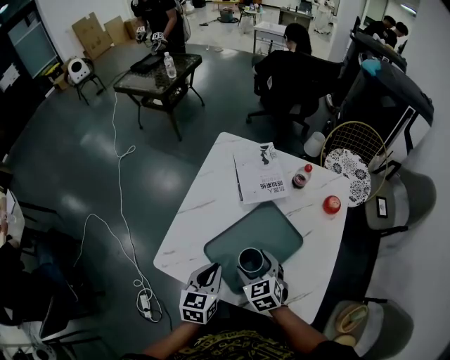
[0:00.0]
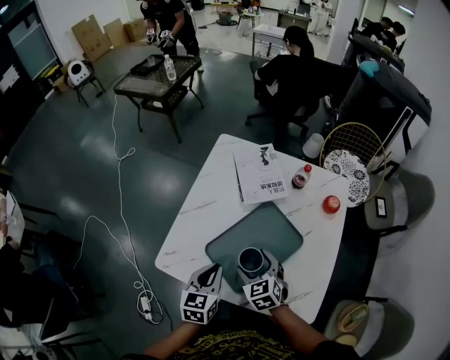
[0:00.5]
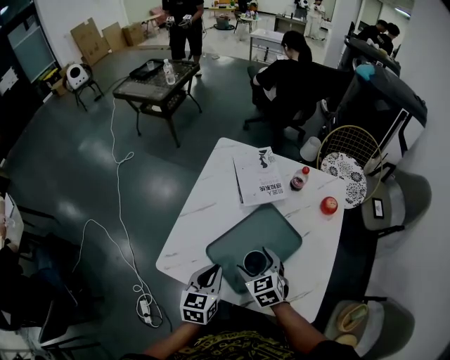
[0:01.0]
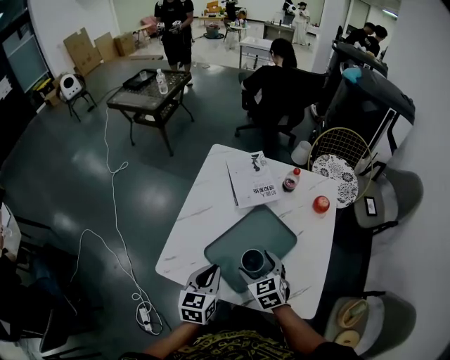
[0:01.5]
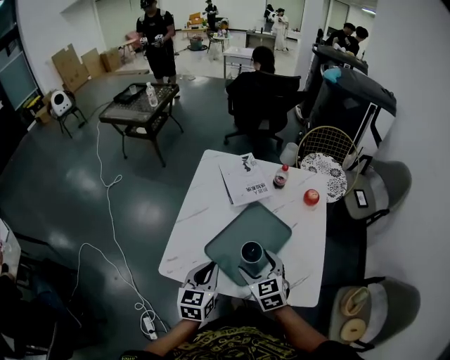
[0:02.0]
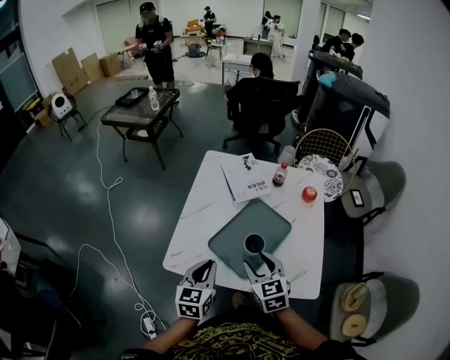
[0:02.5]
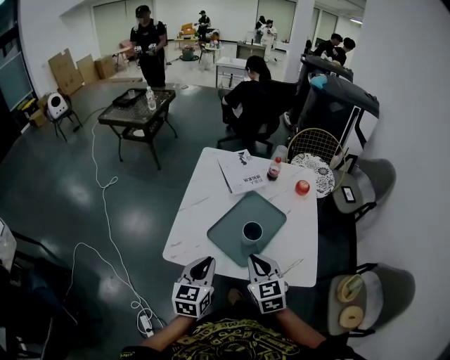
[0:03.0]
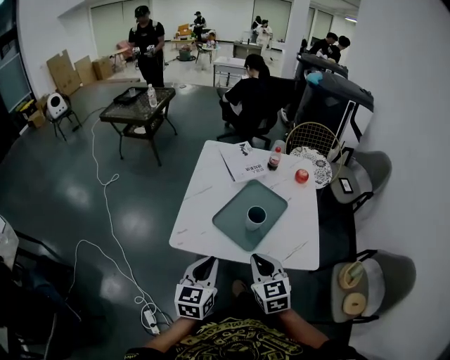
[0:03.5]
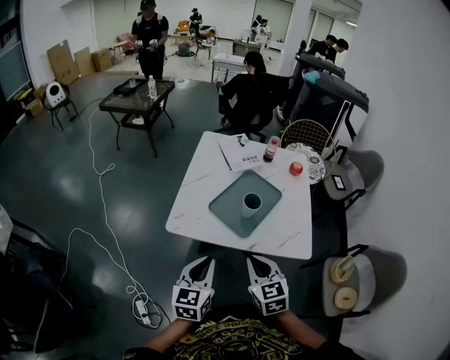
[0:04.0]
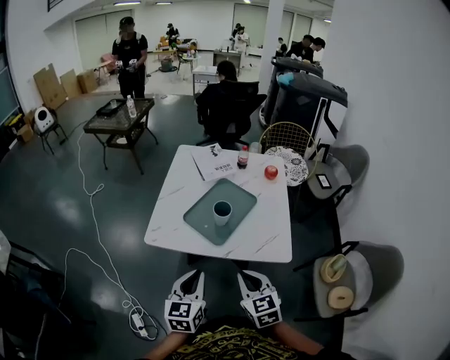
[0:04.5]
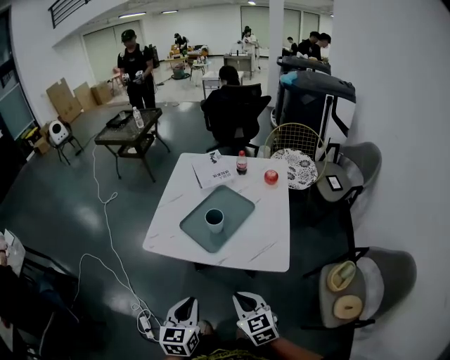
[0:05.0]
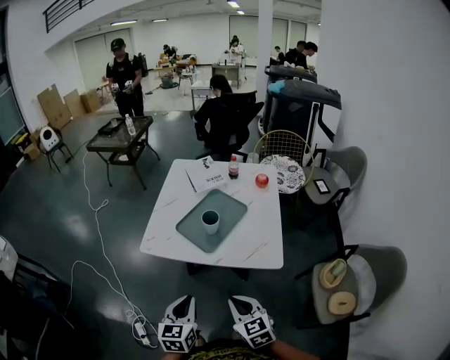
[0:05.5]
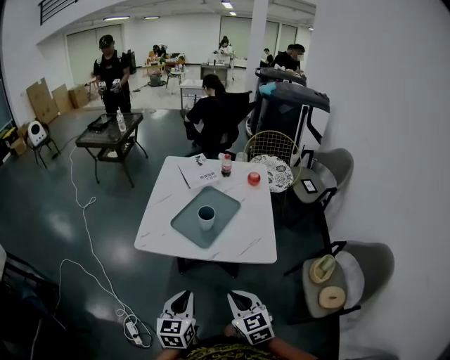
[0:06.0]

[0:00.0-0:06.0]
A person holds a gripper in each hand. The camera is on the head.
0:00.0 to 0:02.0: Both grippers travel together upward, roughly 5 cm.
0:02.0 to 0:04.0: The grippers both shift backward by some 20 cm. The right gripper closes.
0:04.0 to 0:06.0: Both grippers travel together backward and to the right, about 15 cm.

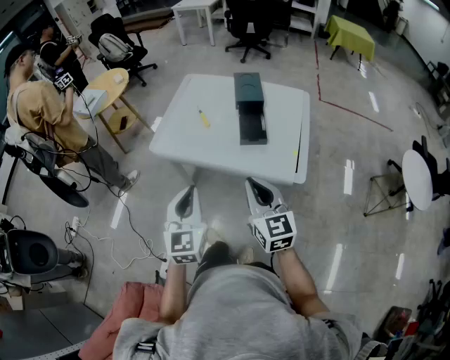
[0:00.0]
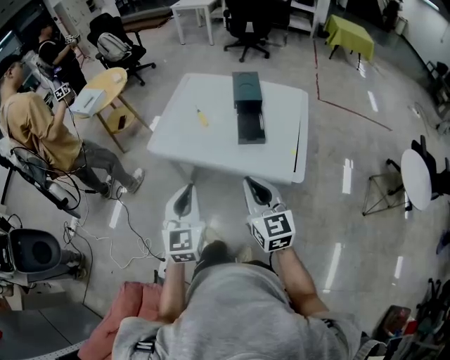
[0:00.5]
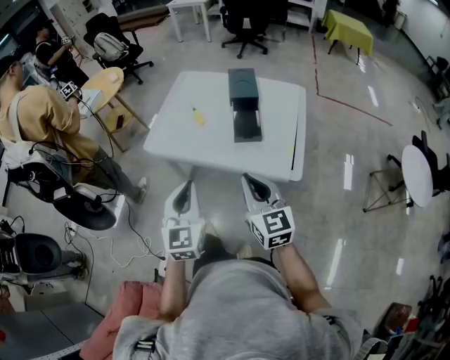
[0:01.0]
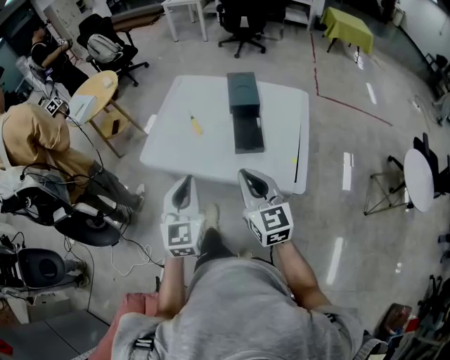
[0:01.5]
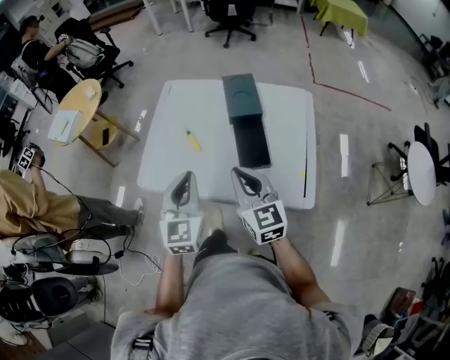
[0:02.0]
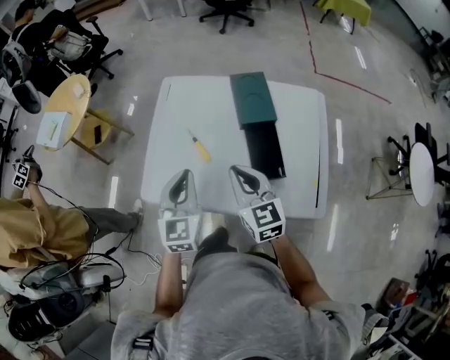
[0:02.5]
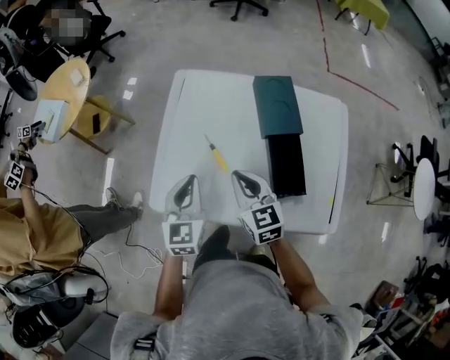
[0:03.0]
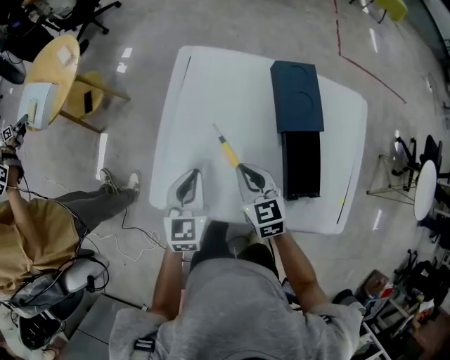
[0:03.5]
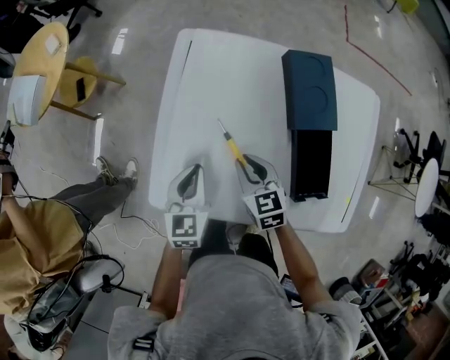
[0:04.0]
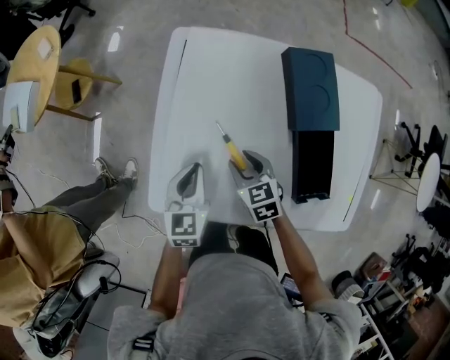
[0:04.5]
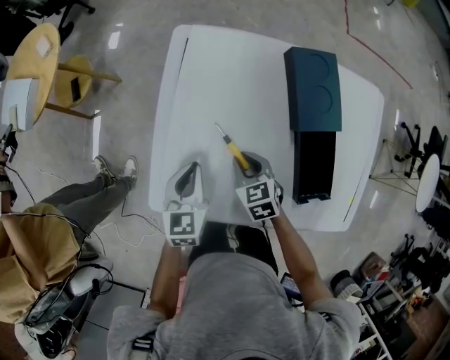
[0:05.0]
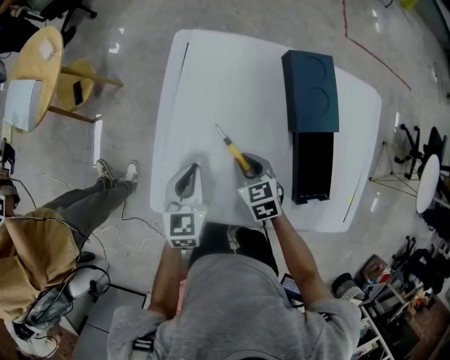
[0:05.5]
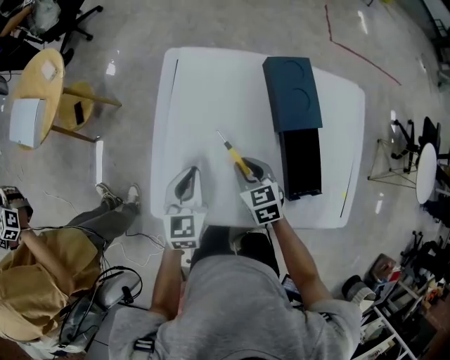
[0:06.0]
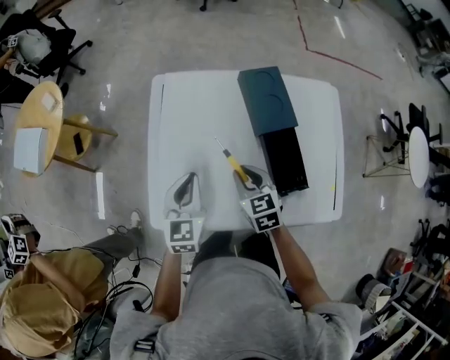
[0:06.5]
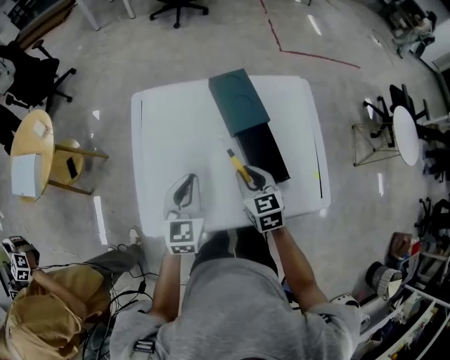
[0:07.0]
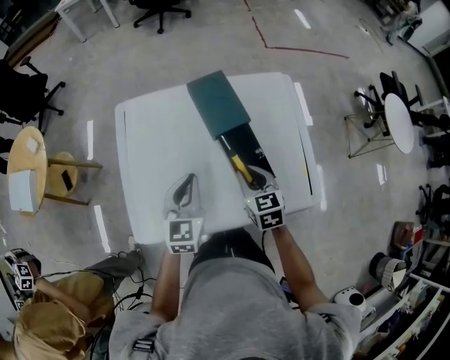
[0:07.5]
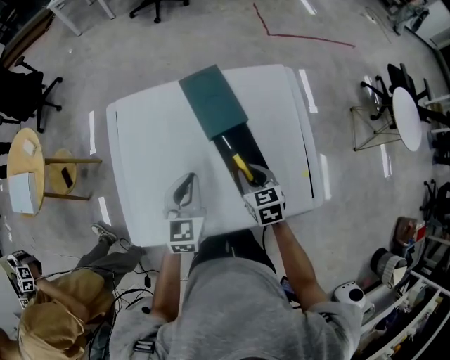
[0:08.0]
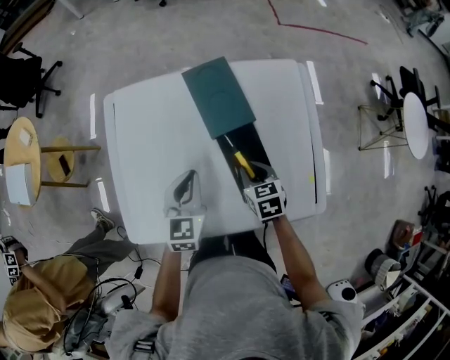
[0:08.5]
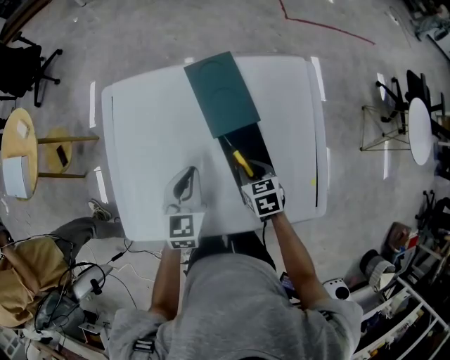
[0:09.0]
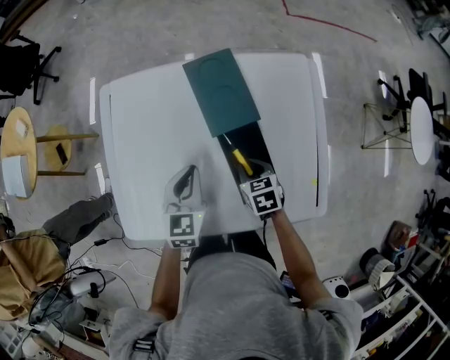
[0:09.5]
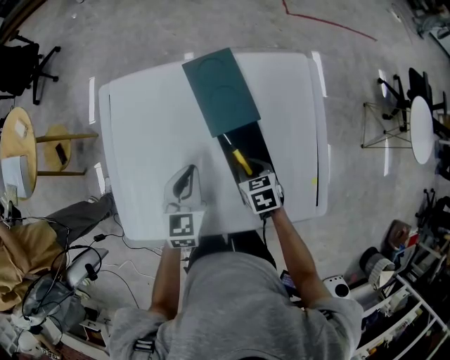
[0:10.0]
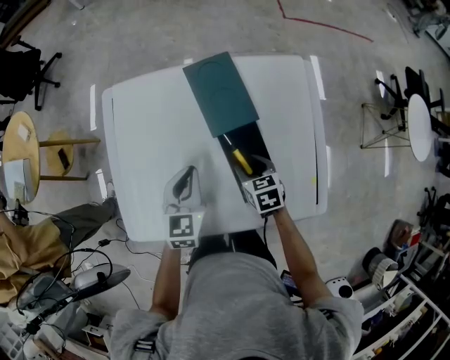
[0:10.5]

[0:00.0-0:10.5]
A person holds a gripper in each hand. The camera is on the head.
0:00.0 to 0:02.0: Both grippers move forward, approximately 25 cm.
0:02.0 to 0:04.0: The left gripper is displaced forward, downward and to the left by about 35 cm, and turns by about 30 degrees, while the right gripper heads downward, forward and to the left, covering approximately 35 cm, and swivels roughly 30 degrees.
0:04.0 to 0:06.5: Both grippers move upward, about 5 cm. The right gripper opens, then closes again.
0:06.5 to 0:08.5: Both grippers travel together to the right, roughly 15 cm.
0:08.5 to 0:10.5: The right gripper opens its fingers.

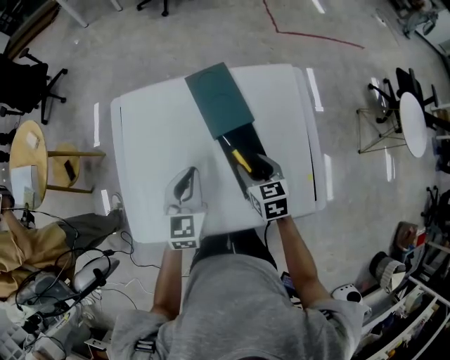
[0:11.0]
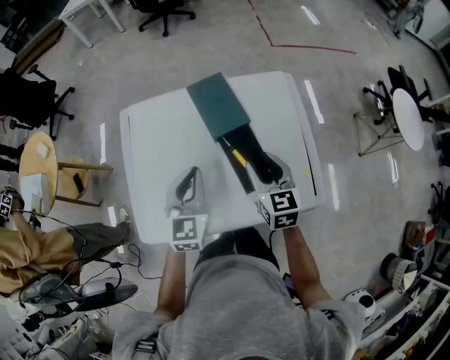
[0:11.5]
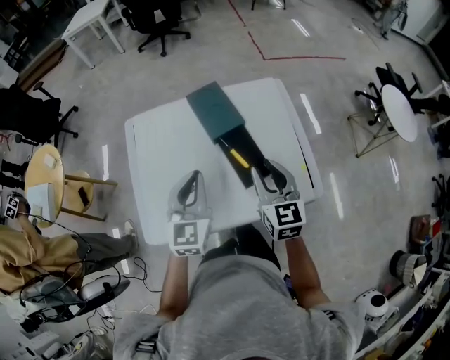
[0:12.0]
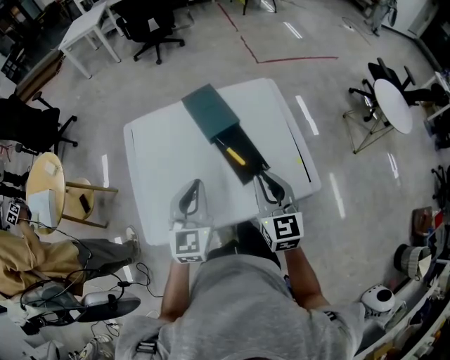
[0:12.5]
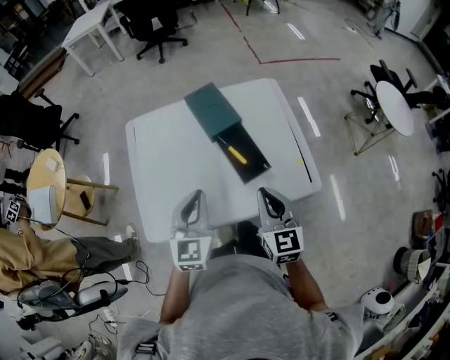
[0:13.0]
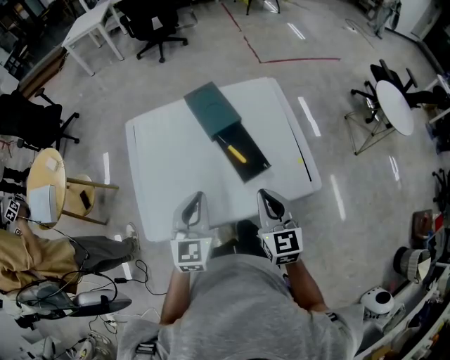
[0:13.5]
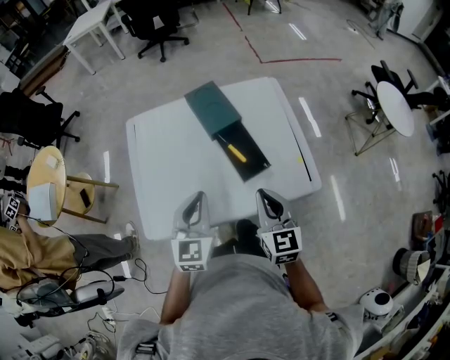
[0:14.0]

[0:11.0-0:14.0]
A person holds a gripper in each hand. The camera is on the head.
0:11.0 to 0:12.5: The right gripper travels upward and backward by roughly 20 cm, changes its angle by about 30 degrees, and closes up. Meanwhile the left gripper is displaced backward and upward by about 15 cm.
0:12.5 to 0:14.0: The right gripper shifts by some 5 cm.

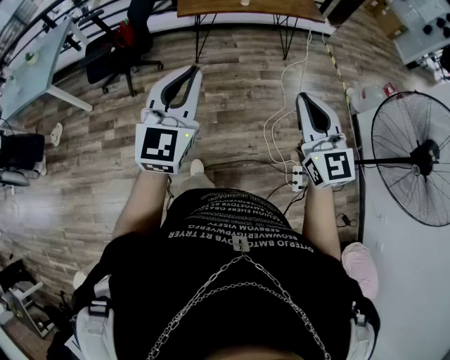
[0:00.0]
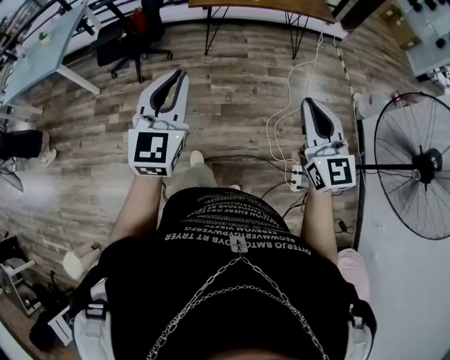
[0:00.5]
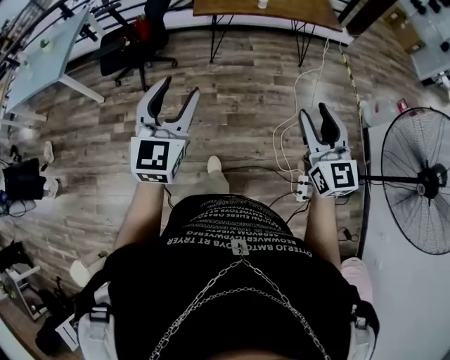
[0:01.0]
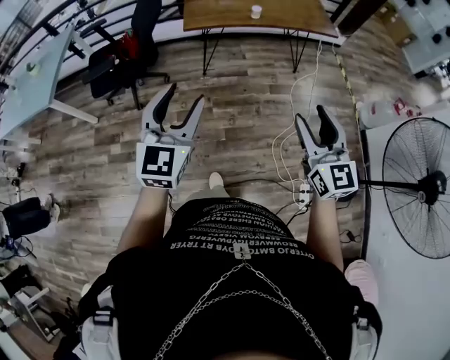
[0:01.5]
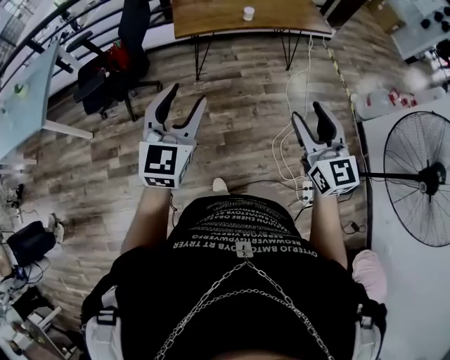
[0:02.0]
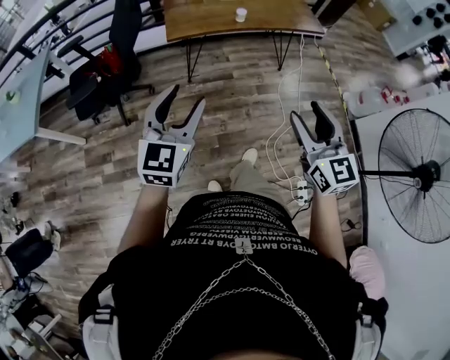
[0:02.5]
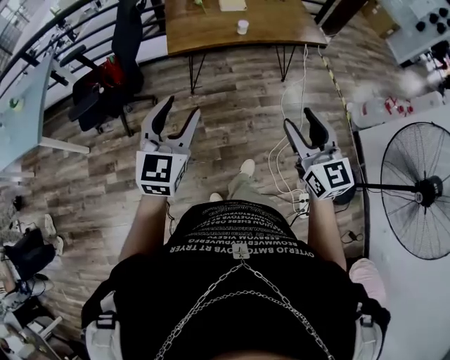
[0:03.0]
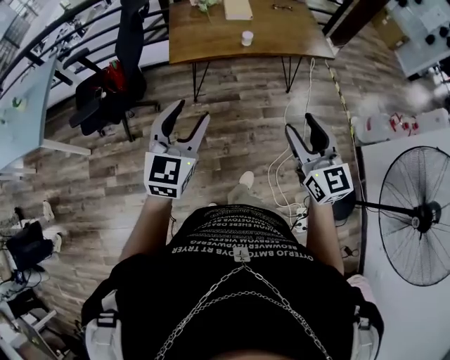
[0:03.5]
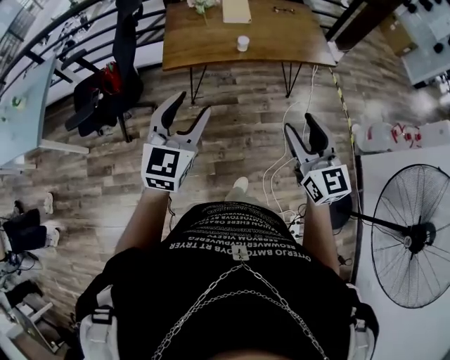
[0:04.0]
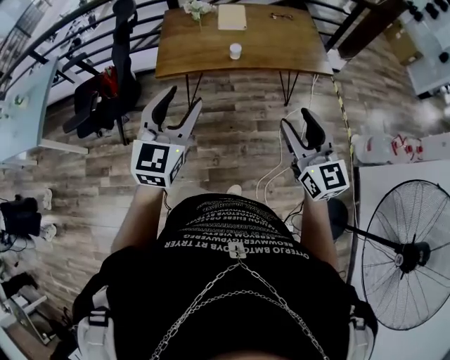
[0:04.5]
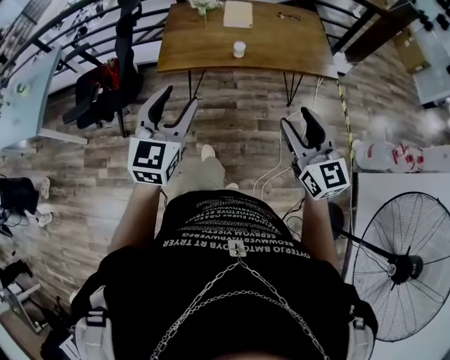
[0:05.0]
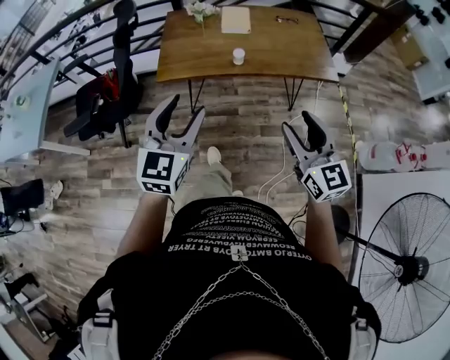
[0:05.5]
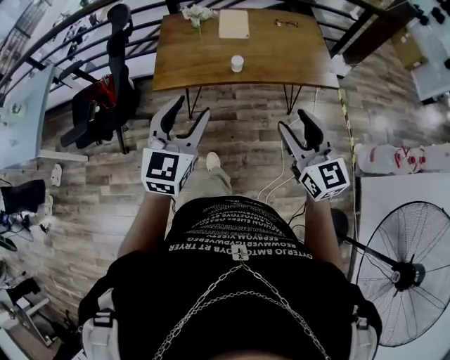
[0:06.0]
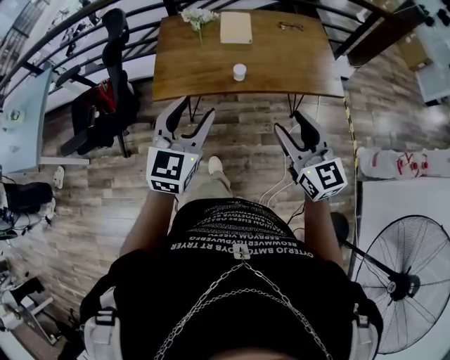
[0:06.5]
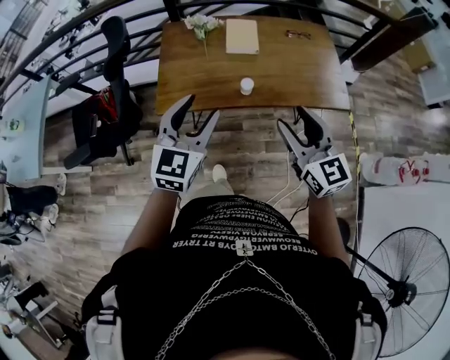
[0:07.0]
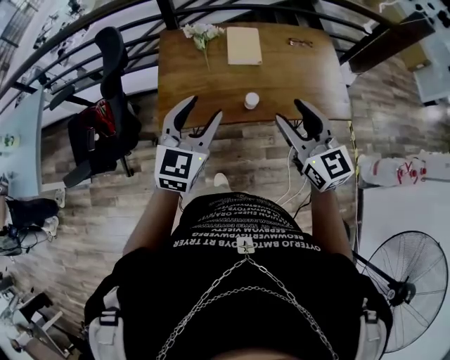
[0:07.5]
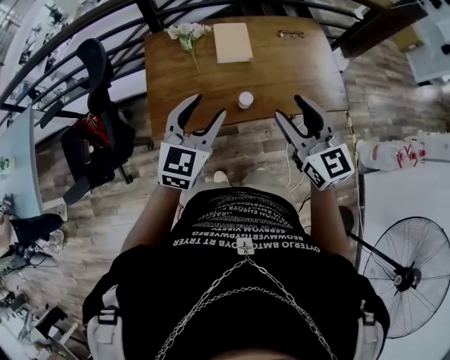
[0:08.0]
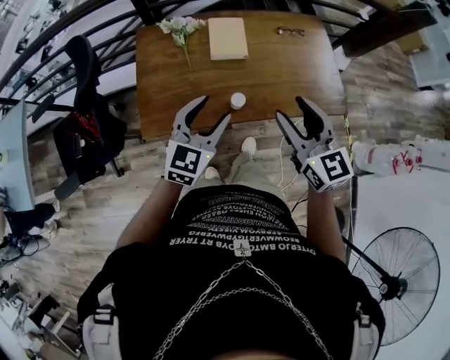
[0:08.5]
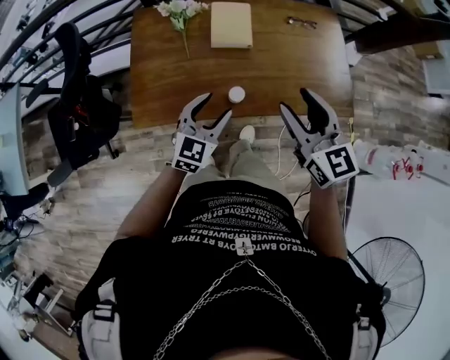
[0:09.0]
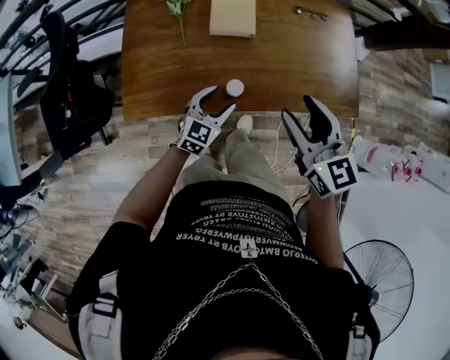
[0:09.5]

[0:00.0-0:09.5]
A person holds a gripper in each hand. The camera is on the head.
0:00.0 to 0:02.0: The grippers both shift forward by approximately 15 cm. The right gripper opens, while the left gripper opens its fingers.
0:02.0 to 0:04.0: The grippers both shift forward and to the right by some 20 cm.
0:04.0 to 0:05.5: Both grippers move forward and to the right, about 10 cm.
0:05.5 to 0:07.5: The grippers both shift forward by roughly 30 cm.
0:07.5 to 0:09.5: The right gripper travels forward, downward and to the right by roughly 15 cm; the left gripper moves downward and to the right, some 30 cm.
